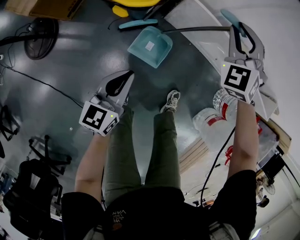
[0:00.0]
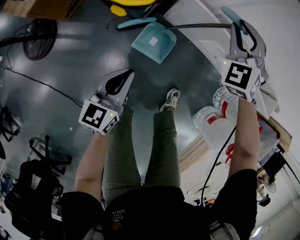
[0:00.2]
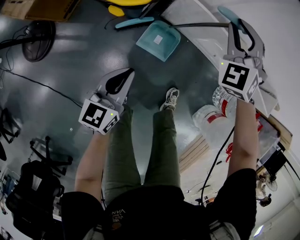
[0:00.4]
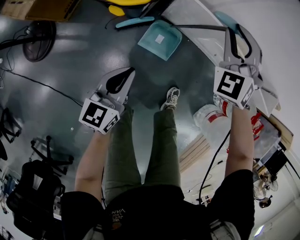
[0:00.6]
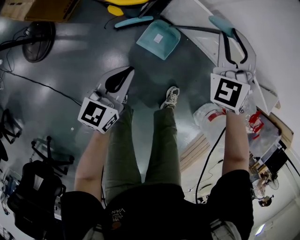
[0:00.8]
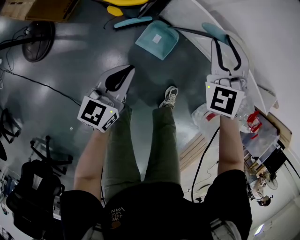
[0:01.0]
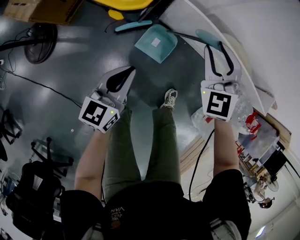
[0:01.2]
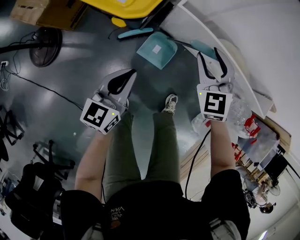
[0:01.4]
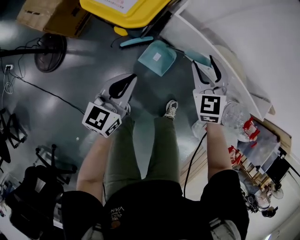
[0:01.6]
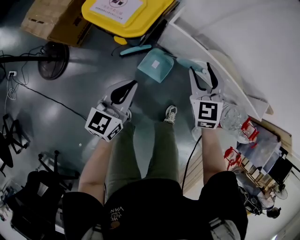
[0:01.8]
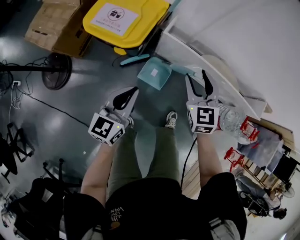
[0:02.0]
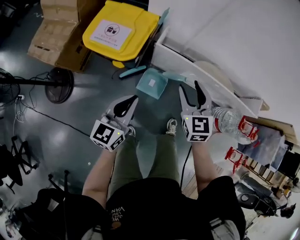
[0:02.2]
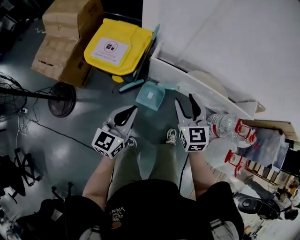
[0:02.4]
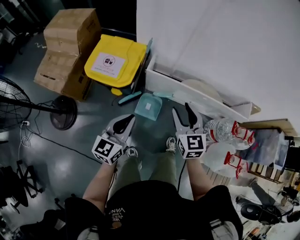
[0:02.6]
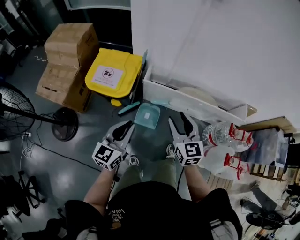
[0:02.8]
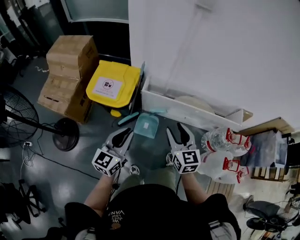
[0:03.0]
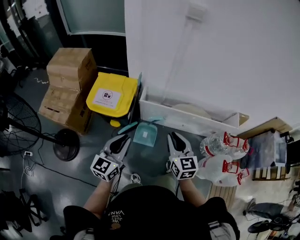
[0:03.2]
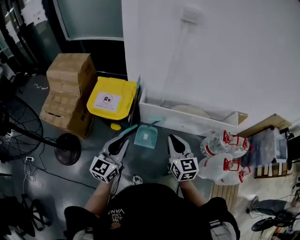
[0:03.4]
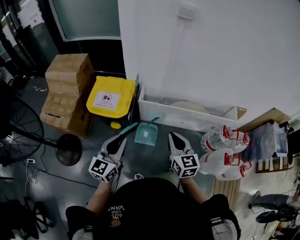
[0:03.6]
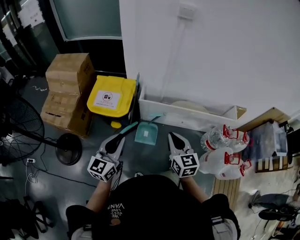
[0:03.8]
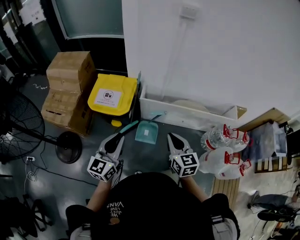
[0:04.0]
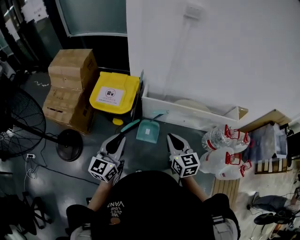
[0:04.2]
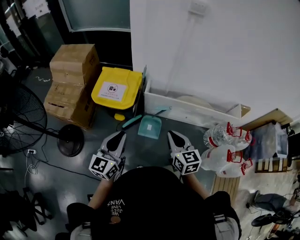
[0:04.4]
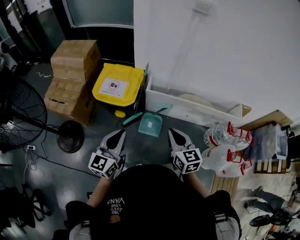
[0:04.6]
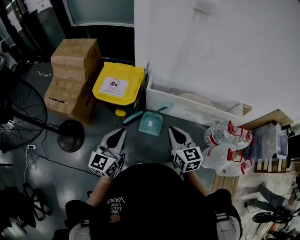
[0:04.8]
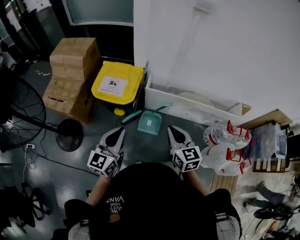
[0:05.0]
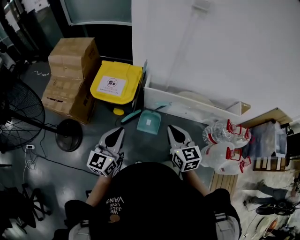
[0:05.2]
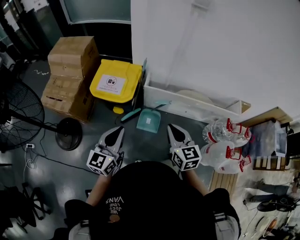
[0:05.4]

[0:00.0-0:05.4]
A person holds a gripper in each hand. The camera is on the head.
0:00.0 to 0:01.4: The right gripper is displaced backward by some 10 cm, rotates roughly 30 degrees, and opens, while the left gripper shifts some 5 cm upward.
0:01.4 to 0:02.8: The left gripper moves upward, about 20 cm, while the right gripper goes approximately 25 cm upward and backward, and turns by roughly 40 degrees.
0:02.8 to 0:04.0: The left gripper travels upward, backward and to the left by some 10 cm. Meanwhile the right gripper heads backward, covering approximately 10 cm, and closes its fingers.
0:04.0 to 0:05.4: The grippers make only small movements.

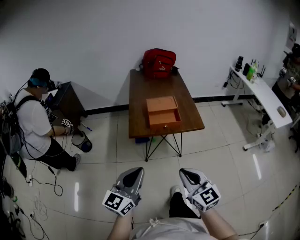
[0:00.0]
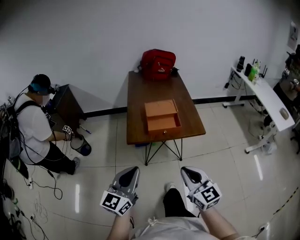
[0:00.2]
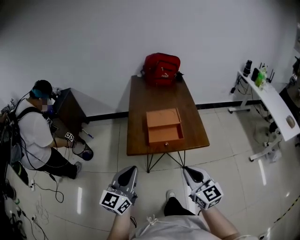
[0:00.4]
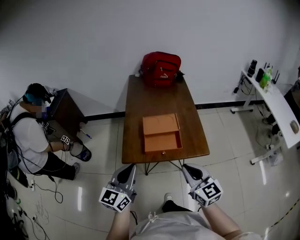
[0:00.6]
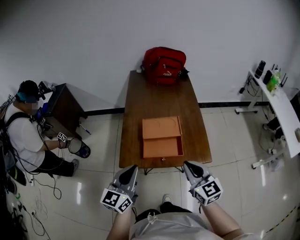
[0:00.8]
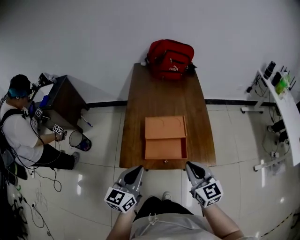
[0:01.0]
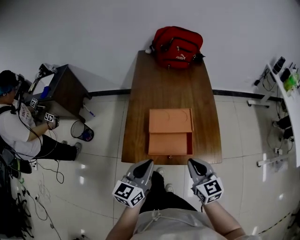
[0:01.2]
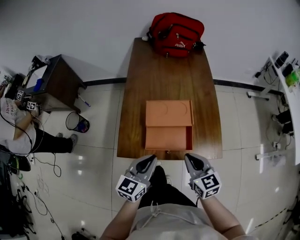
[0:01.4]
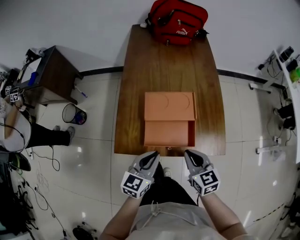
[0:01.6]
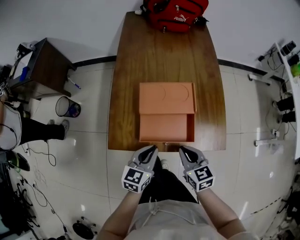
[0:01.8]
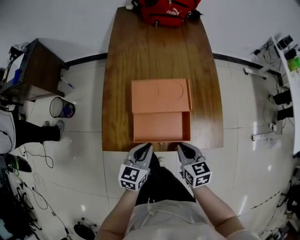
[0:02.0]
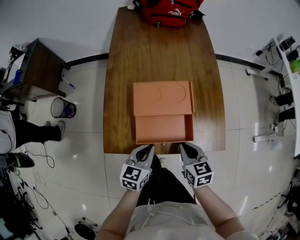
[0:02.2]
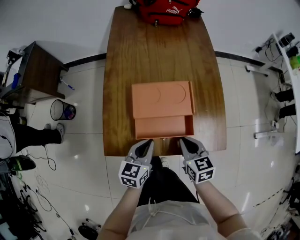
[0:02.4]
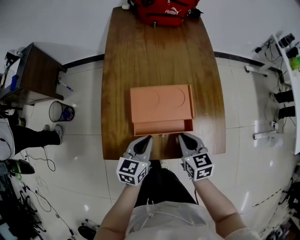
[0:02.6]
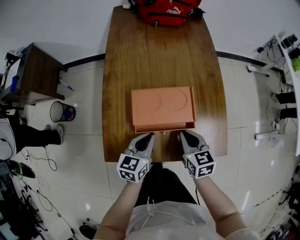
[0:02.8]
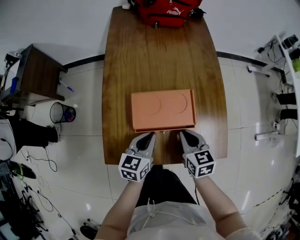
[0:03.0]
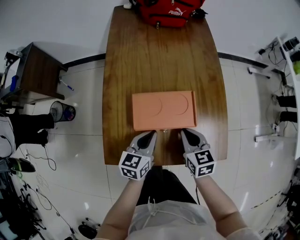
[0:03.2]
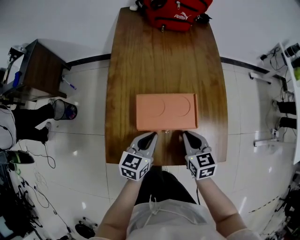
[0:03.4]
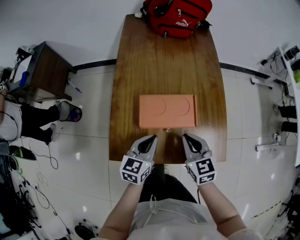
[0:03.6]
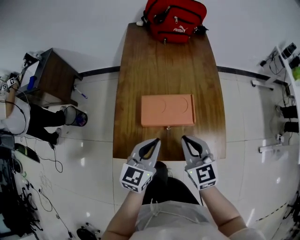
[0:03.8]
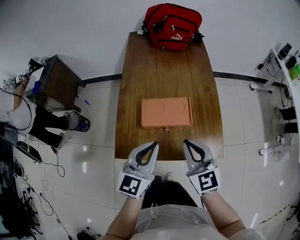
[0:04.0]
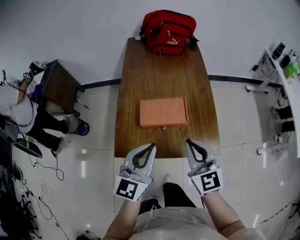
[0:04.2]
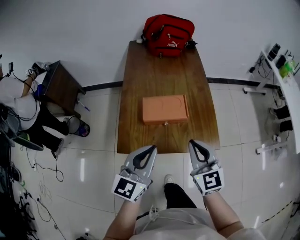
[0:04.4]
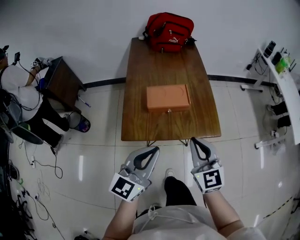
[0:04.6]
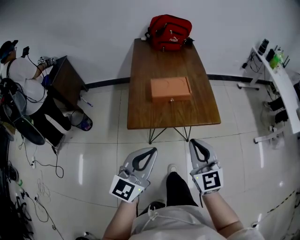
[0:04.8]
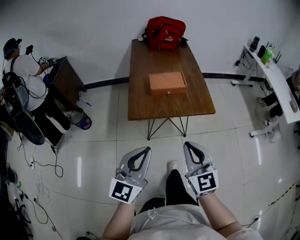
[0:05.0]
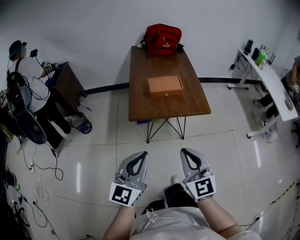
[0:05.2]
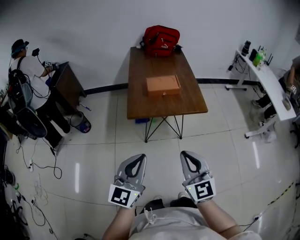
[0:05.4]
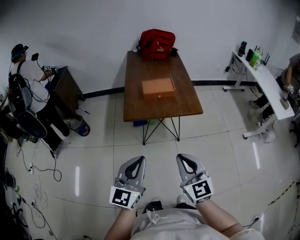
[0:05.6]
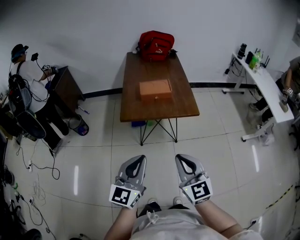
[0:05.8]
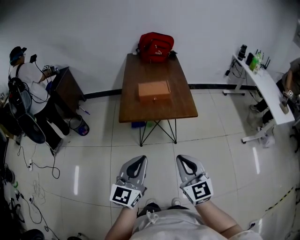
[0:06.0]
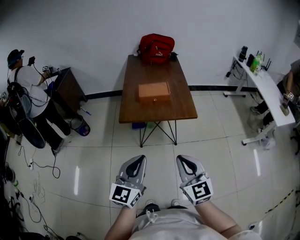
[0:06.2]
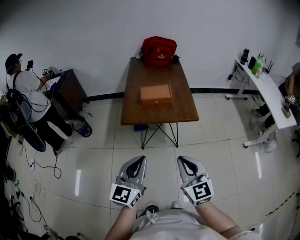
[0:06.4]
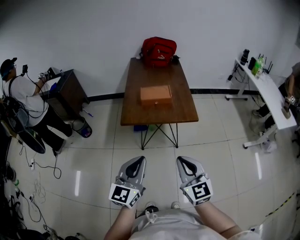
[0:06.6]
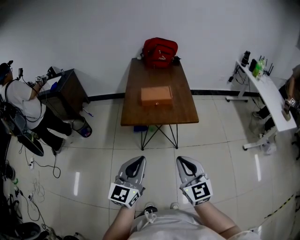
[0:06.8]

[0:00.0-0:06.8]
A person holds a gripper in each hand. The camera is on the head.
0:00.0 to 0:01.4: The right gripper goes approximately 40 cm forward. The left gripper is displaced forward and downward by some 40 cm, and changes its angle by about 20 degrees.
0:01.4 to 0:02.8: The two grippers go some 15 cm downward and forward.
0:02.8 to 0:04.0: Both grippers move upward, approximately 20 cm. The left gripper changes its angle by about 30 degrees; the right gripper turns by about 30 degrees.
0:04.0 to 0:05.4: The pair of grippers is taken backward, approximately 40 cm.
0:05.4 to 0:06.8: Both grippers travel together to the right, some 10 cm.

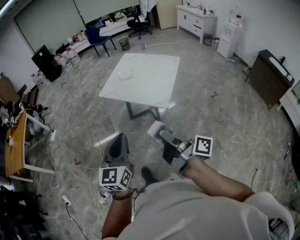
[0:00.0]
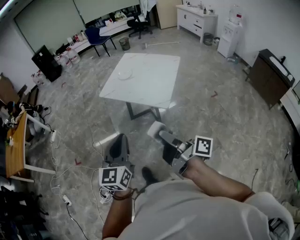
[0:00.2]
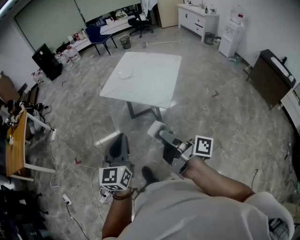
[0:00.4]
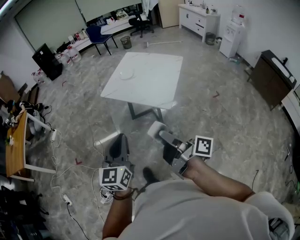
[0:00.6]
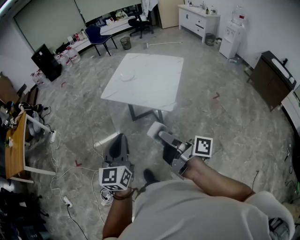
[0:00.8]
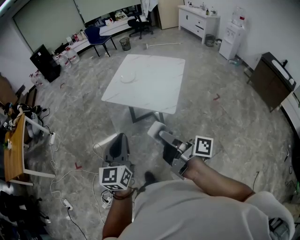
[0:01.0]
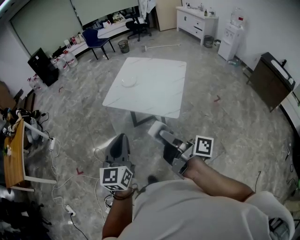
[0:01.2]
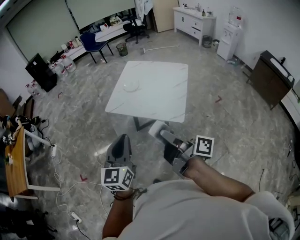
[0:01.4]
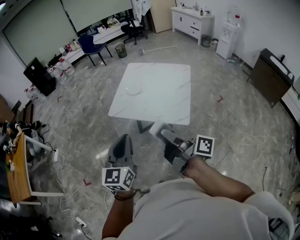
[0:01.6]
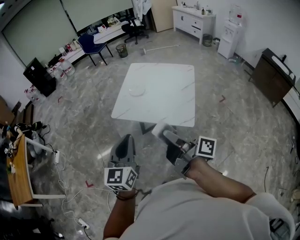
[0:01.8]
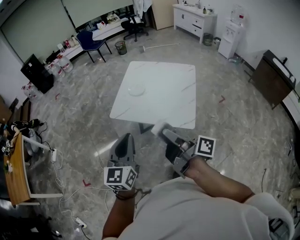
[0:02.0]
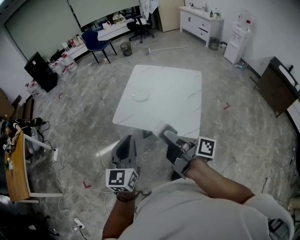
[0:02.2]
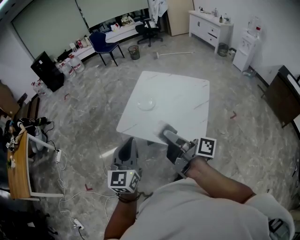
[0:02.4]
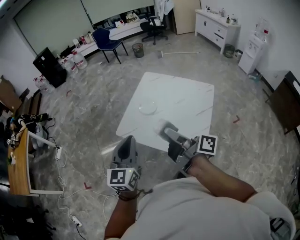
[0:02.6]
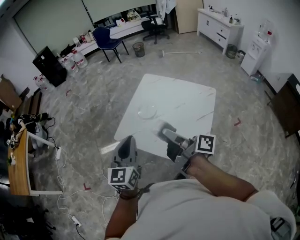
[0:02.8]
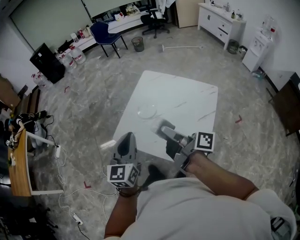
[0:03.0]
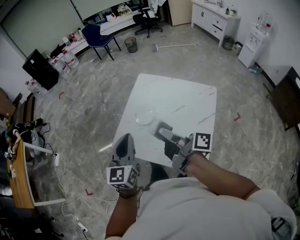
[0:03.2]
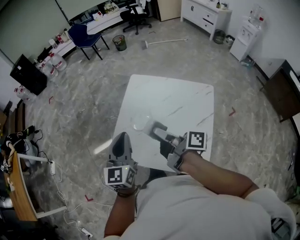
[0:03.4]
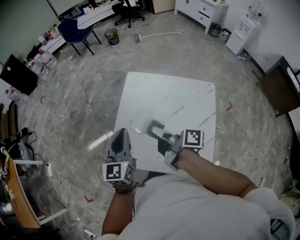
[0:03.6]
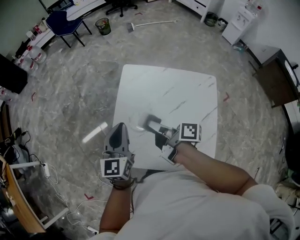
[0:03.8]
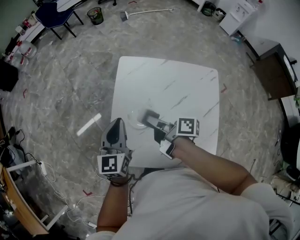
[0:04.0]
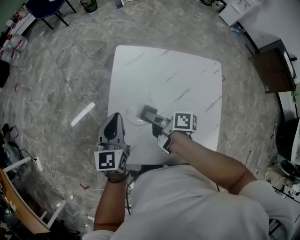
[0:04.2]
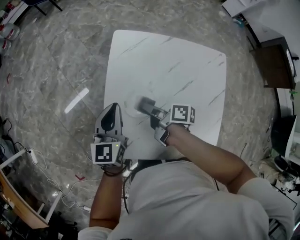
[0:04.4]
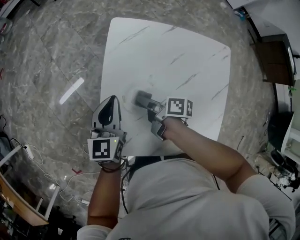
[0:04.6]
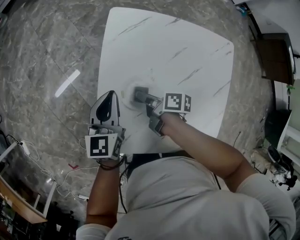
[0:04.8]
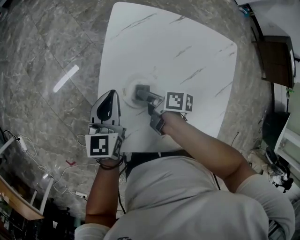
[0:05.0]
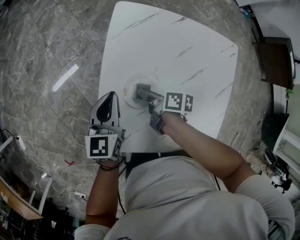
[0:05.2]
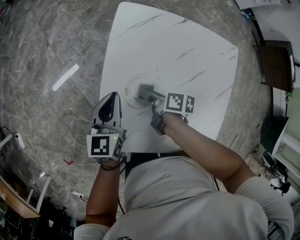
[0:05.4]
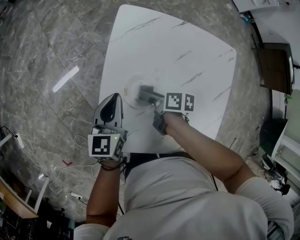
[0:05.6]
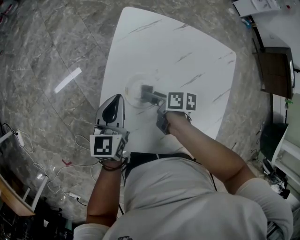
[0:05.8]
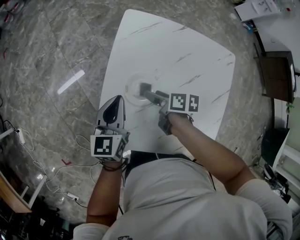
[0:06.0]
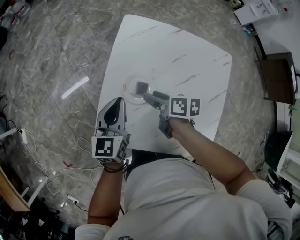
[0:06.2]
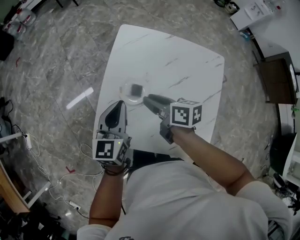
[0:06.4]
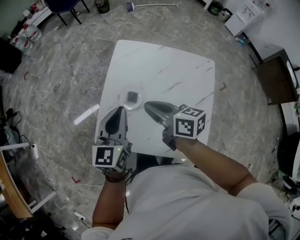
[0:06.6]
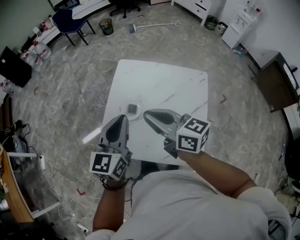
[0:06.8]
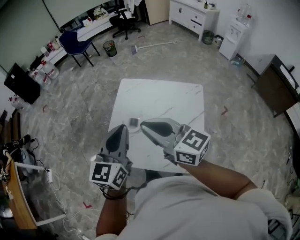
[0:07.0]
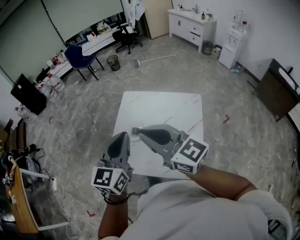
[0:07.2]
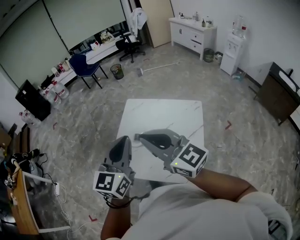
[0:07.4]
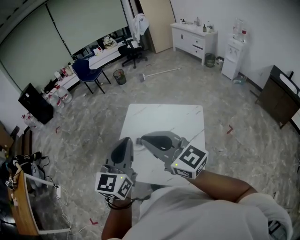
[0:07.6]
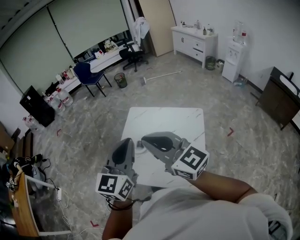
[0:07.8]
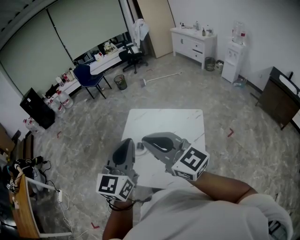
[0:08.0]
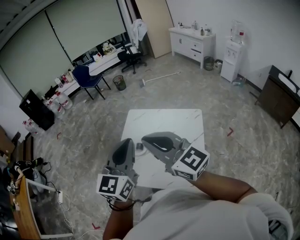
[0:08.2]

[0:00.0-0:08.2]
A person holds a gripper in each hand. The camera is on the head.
0:00.0 to 0:01.6: The left gripper changes place by some 25 cm.
0:01.6 to 0:03.2: The left gripper moves approximately 40 cm.
0:03.2 to 0:05.0: The left gripper shifts by about 50 cm, and turns by approximately 30 degrees.
0:05.0 to 0:06.6: The left gripper travels upward by about 20 cm.
0:06.6 to 0:08.2: The left gripper goes approximately 30 cm upward, and turns by roughly 20 degrees.

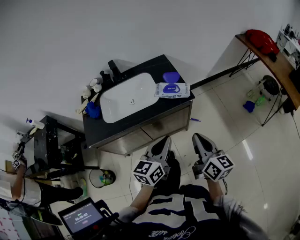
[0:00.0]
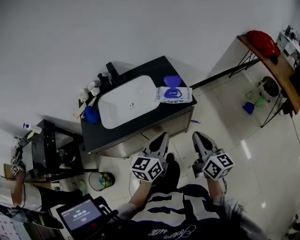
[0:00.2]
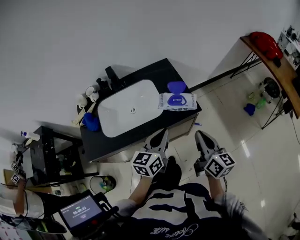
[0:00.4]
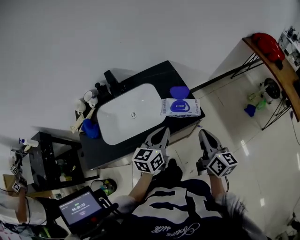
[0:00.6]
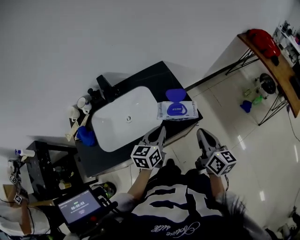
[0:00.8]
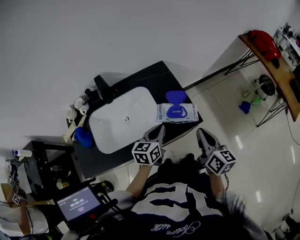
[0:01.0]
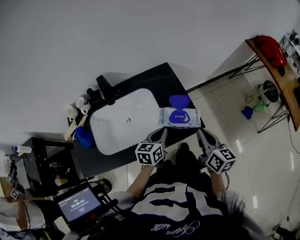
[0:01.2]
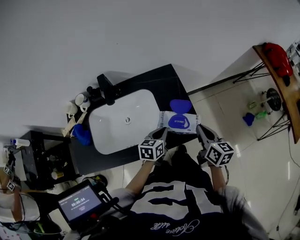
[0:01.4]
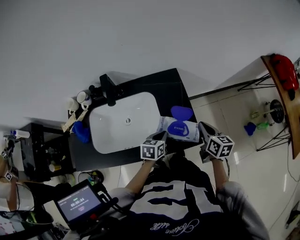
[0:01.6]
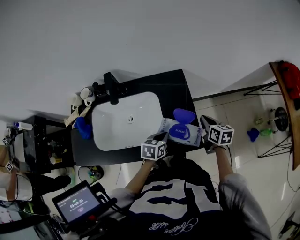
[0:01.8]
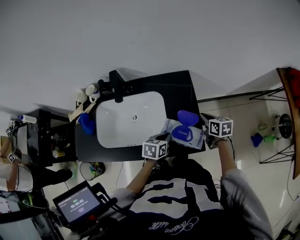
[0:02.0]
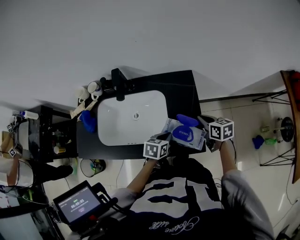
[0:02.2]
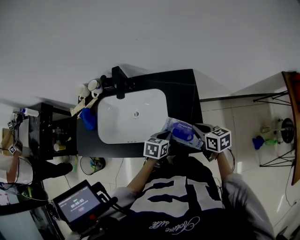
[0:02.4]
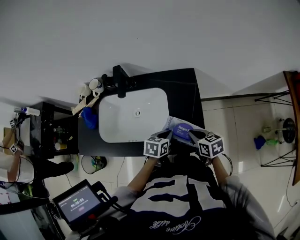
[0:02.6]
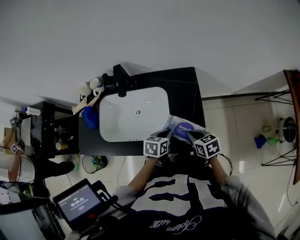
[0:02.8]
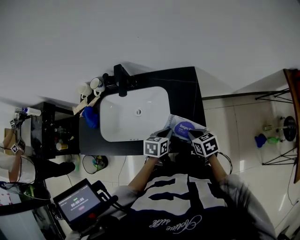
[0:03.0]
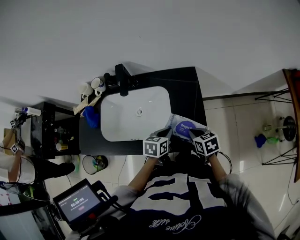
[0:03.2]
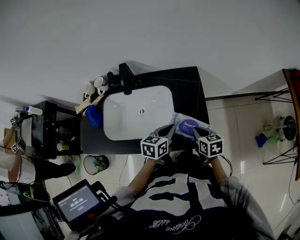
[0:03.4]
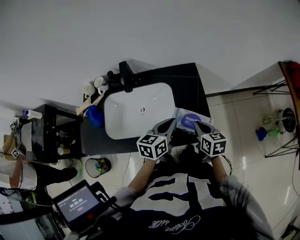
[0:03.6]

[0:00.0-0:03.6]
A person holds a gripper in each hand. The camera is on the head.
0:00.0 to 0:01.8: The right gripper moves forward, roughly 40 cm, and points its fingers approximately 30 degrees further downward. Meanwhile the left gripper shifts roughly 40 cm forward and downward, and points its fingers some 30 degrees further downward.
0:01.8 to 0:03.6: The left gripper travels upward by some 10 cm, and changes its angle by some 20 degrees; the right gripper shifts some 15 cm to the left and backward.
